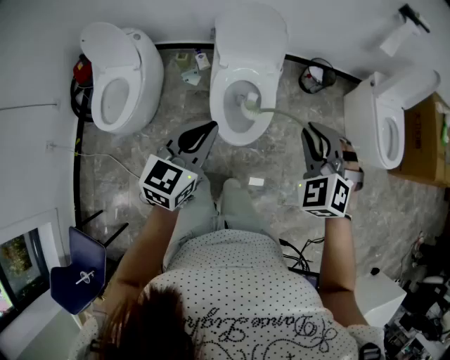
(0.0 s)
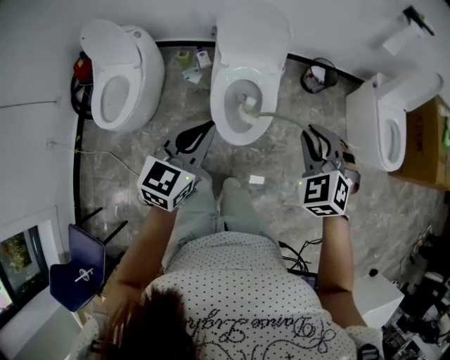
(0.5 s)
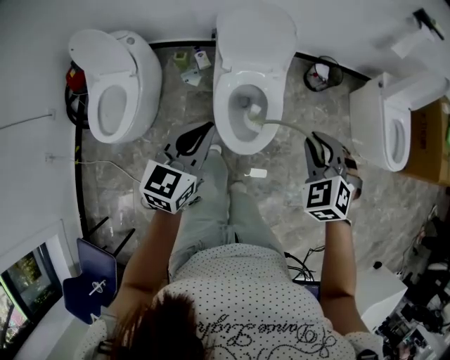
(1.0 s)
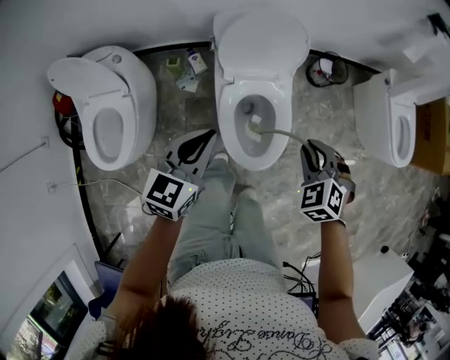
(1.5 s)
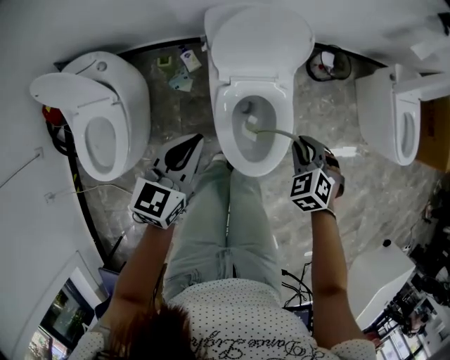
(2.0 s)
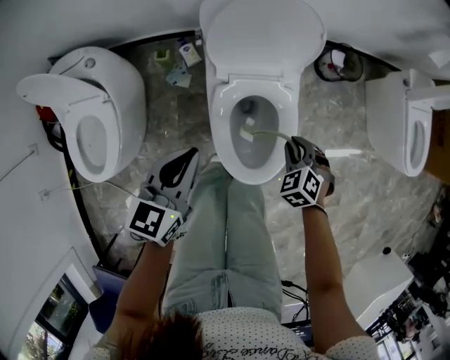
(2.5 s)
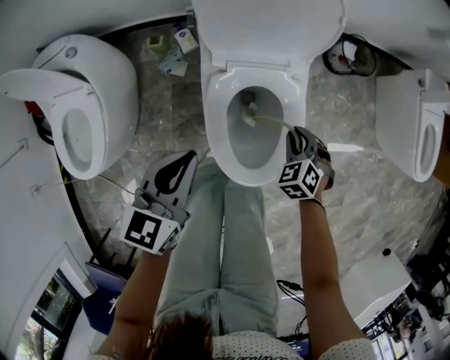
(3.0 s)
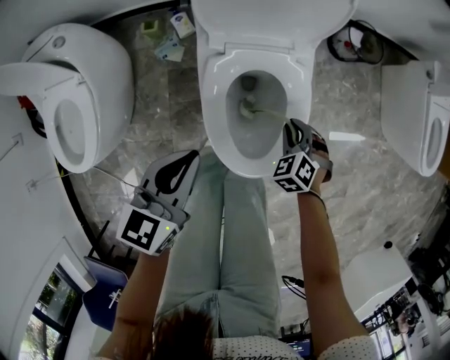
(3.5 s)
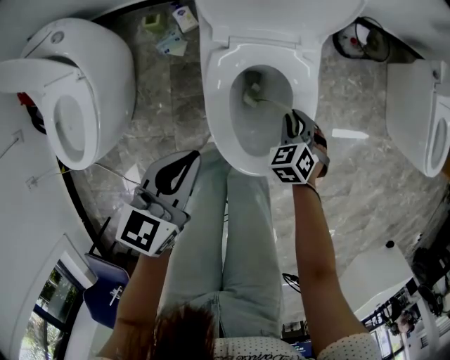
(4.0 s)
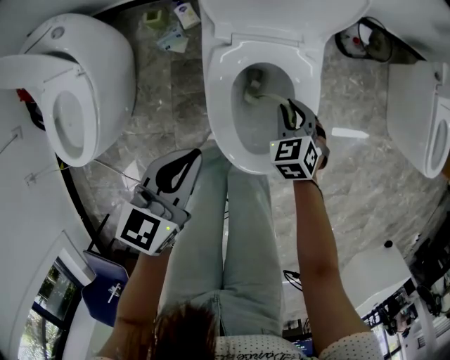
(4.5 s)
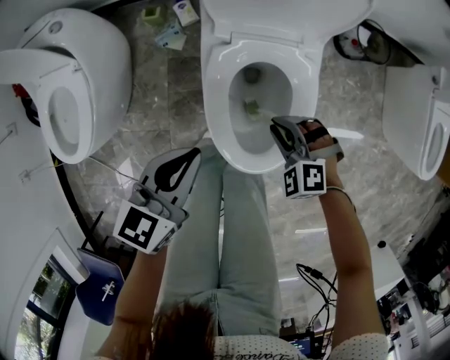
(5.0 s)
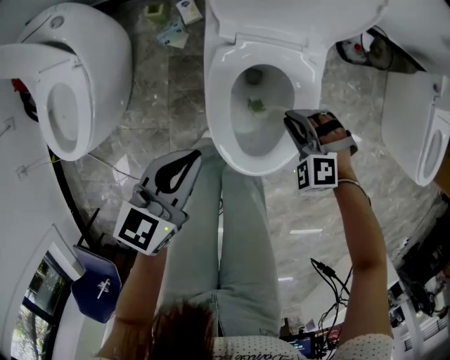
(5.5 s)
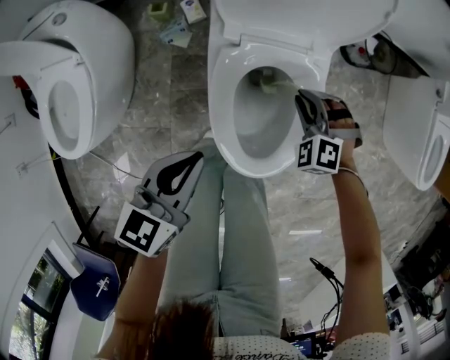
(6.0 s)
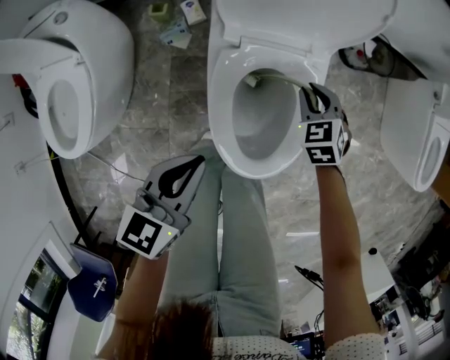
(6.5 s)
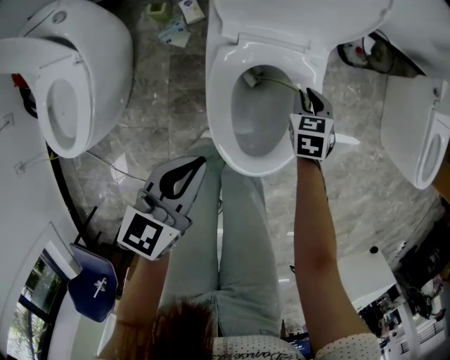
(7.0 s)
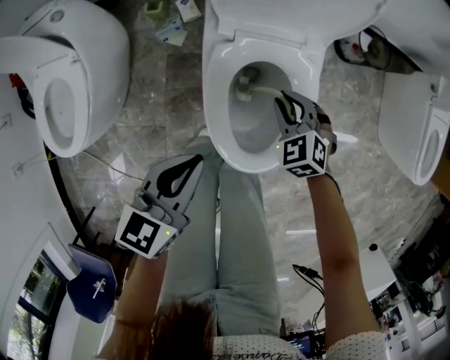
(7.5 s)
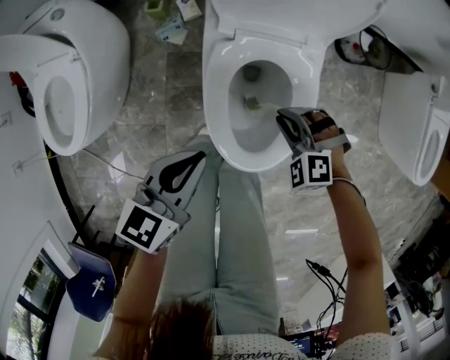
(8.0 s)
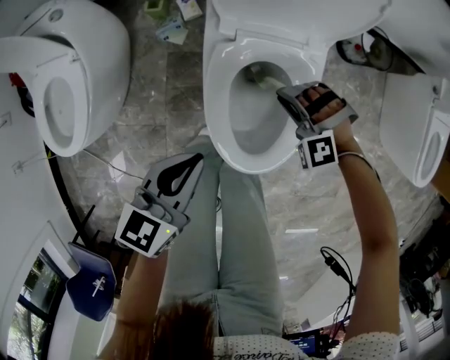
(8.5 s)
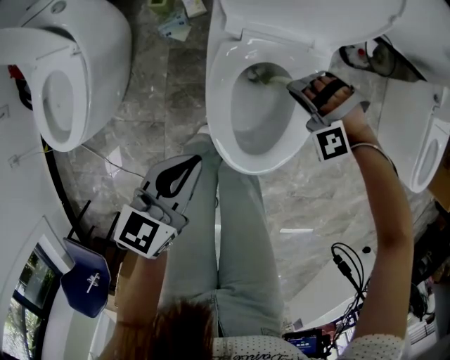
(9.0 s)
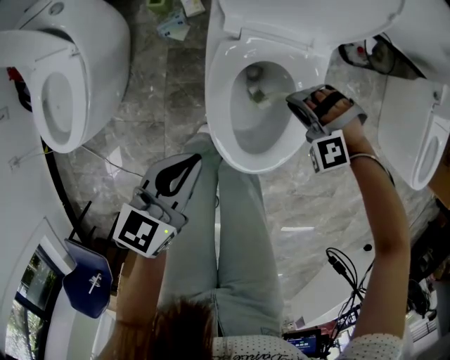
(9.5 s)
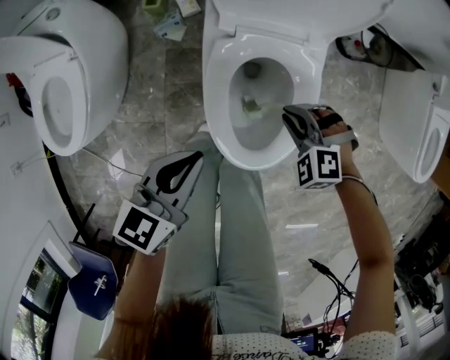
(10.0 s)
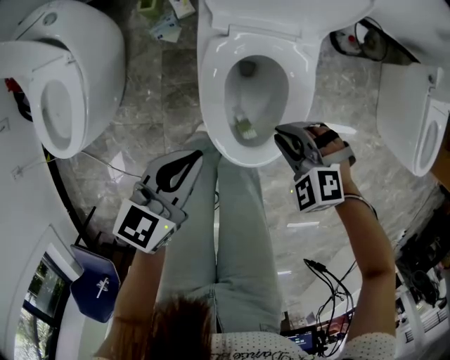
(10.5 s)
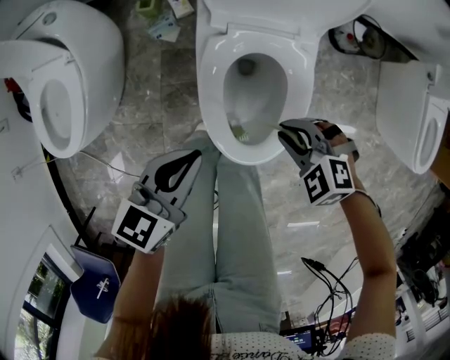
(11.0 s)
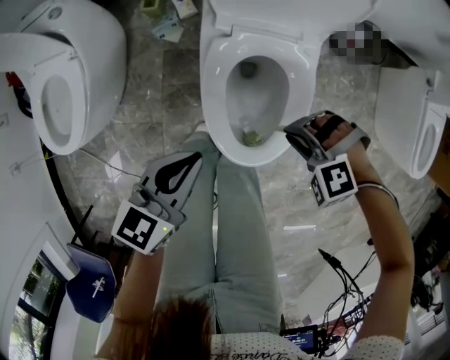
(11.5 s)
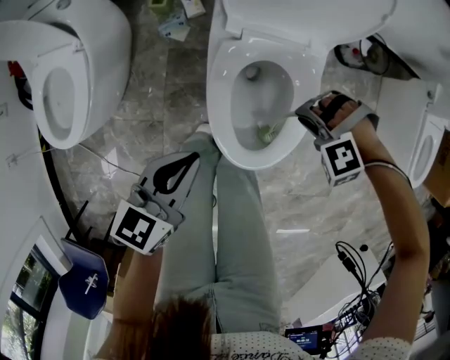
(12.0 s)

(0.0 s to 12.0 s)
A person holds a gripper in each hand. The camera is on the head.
0.0 s - 2.0 s: The left gripper goes about 30 cm forward, to the left and downward, while the right gripper travels downward, forward and to the left by some 30 cm, and swivels some 30 degrees.
2.0 s - 4.0 s: The left gripper shifts some 15 cm downward. The right gripper is displaced downward by some 25 cm.
4.0 s - 6.0 s: The right gripper moves forward, about 5 cm, and rolls counterclockwise, seen from behind, by roughly 40 degrees.
6.0 s - 8.0 s: The right gripper moves backward, roughly 10 cm.
10.0 s - 12.0 s: The right gripper changes its angle by roughly 40 degrees.

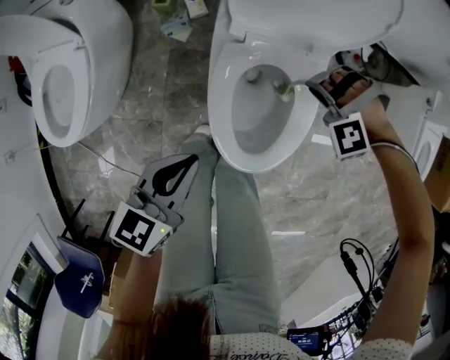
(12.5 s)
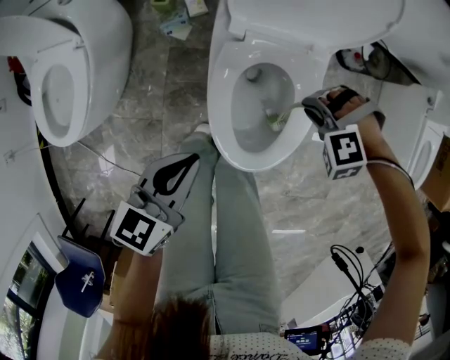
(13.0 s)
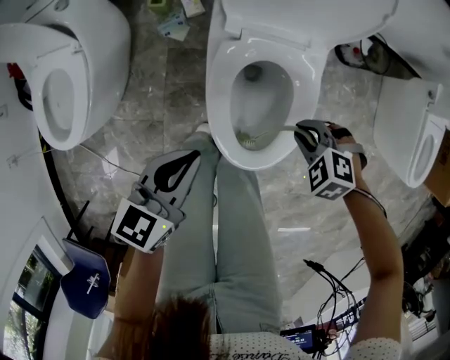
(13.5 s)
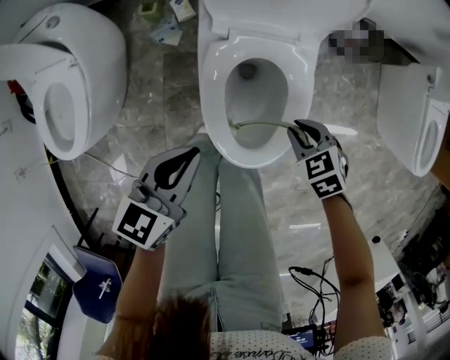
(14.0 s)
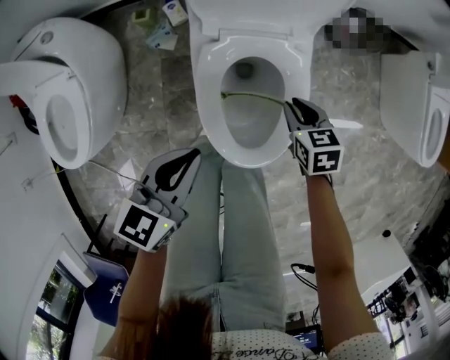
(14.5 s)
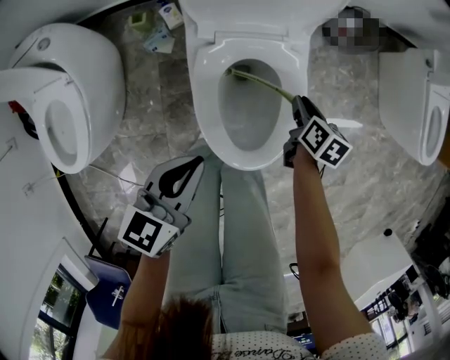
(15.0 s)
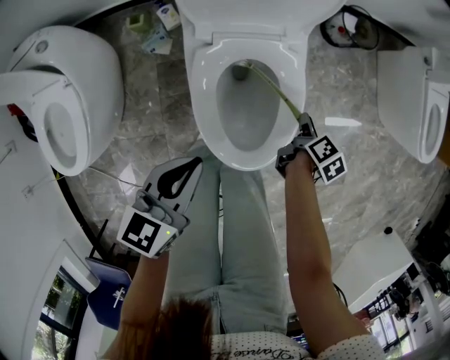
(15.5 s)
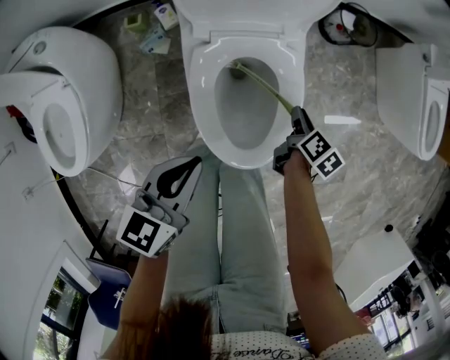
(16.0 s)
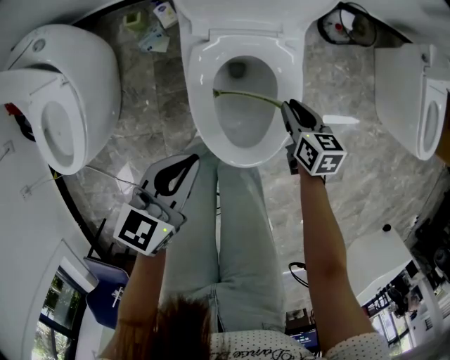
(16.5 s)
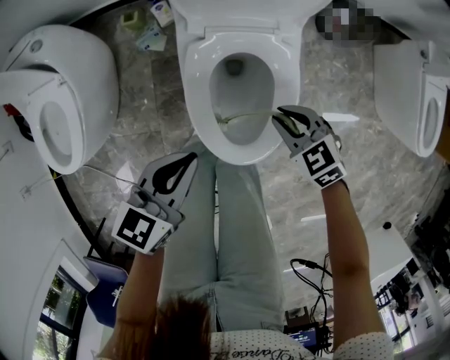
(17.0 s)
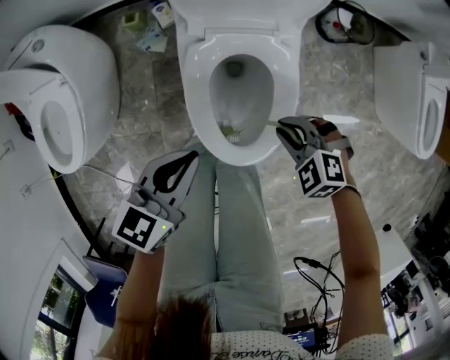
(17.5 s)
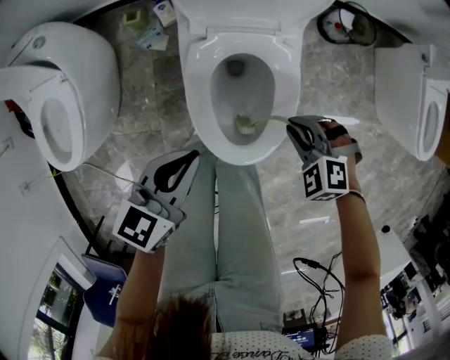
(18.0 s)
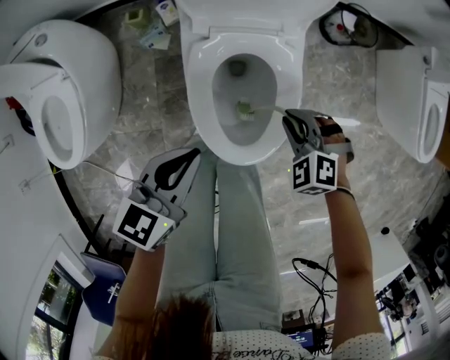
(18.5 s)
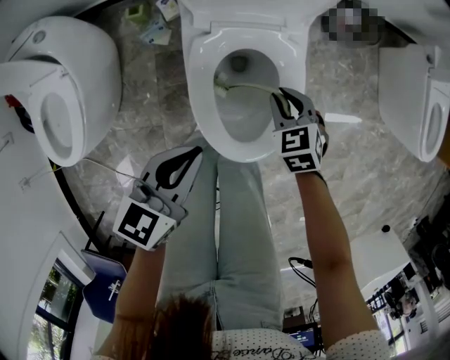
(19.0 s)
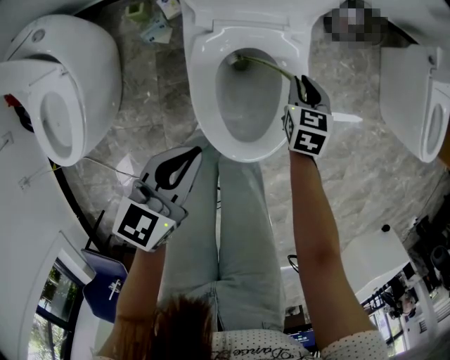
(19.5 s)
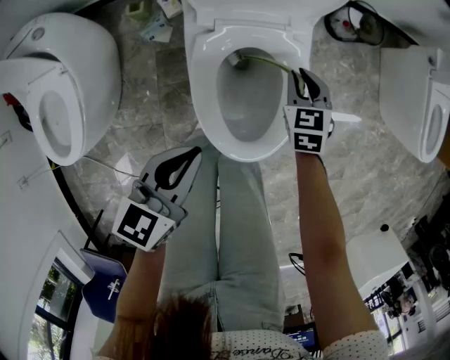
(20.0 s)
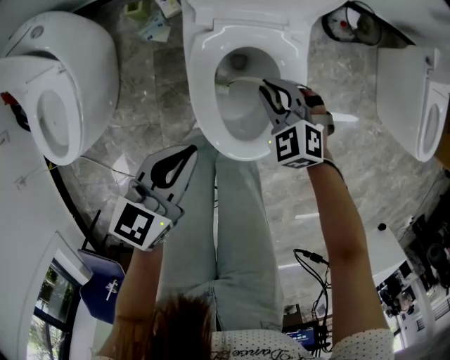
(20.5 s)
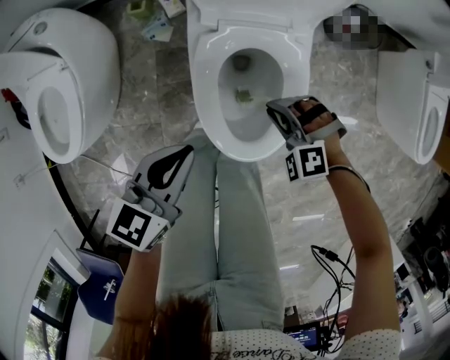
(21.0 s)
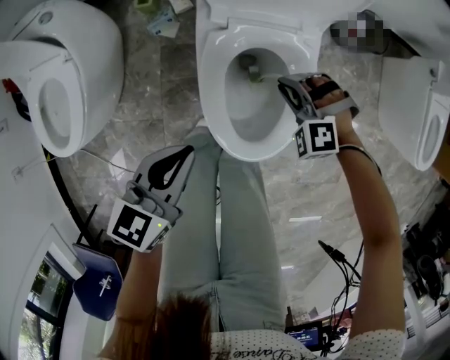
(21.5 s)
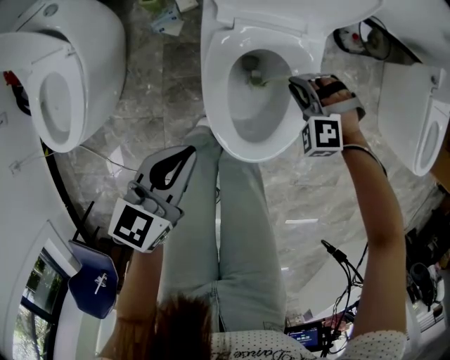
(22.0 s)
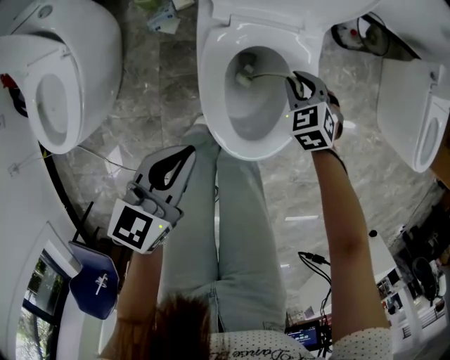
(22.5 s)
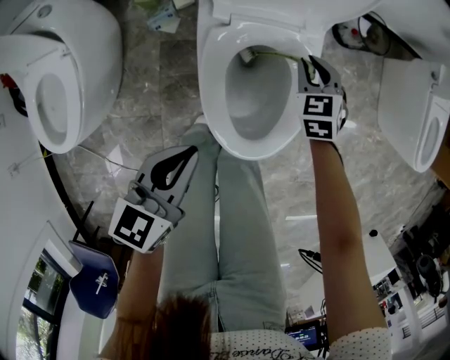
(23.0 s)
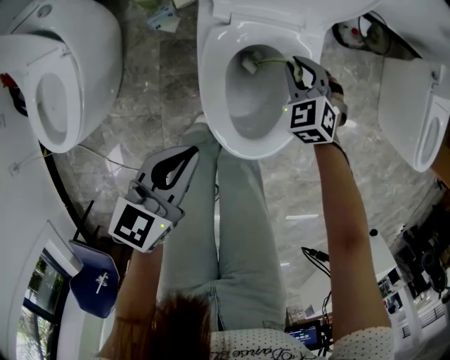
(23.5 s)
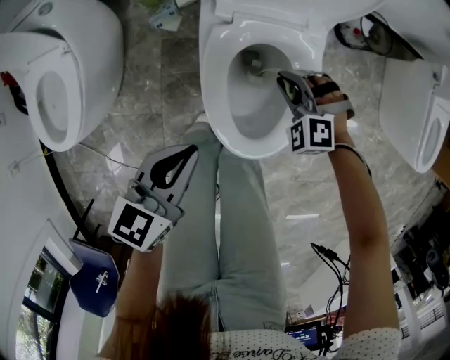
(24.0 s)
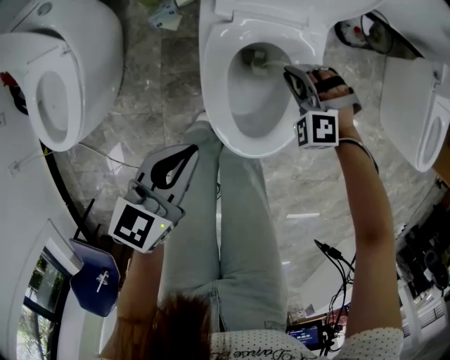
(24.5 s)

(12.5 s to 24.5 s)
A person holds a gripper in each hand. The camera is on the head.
12.5 s - 14.5 s: The right gripper twists about 120 degrees clockwise, seen from behind.
14.5 s - 16.5 s: The right gripper travels to the right and back again, about 10 cm each way.
16.5 s - 18.5 s: The right gripper twists approximately 80 degrees counterclockwise, seen from behind.
18.5 s - 20.5 s: The right gripper shifts approximately 10 cm to the left.
20.5 s - 22.5 s: The right gripper heads downward, covering about 5 cm.
22.5 s - 24.5 s: The right gripper moves some 5 cm forward and comes back, and rotates around the line of its fingers by some 50 degrees, counterclockwise from behind.

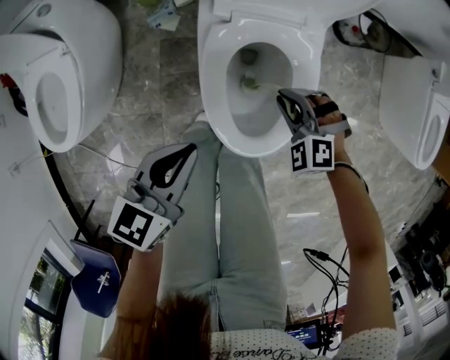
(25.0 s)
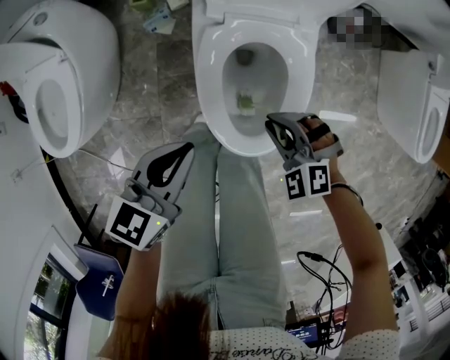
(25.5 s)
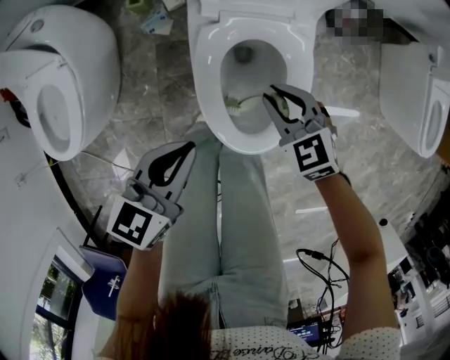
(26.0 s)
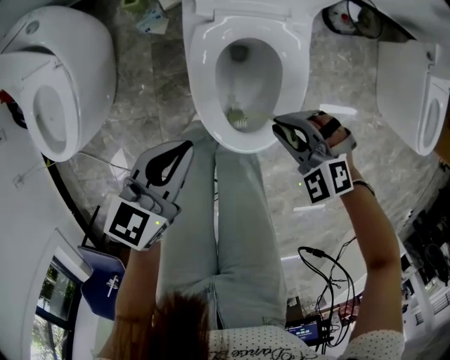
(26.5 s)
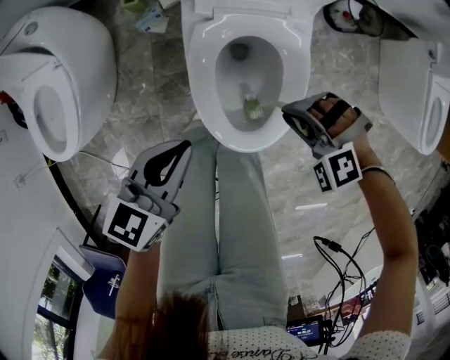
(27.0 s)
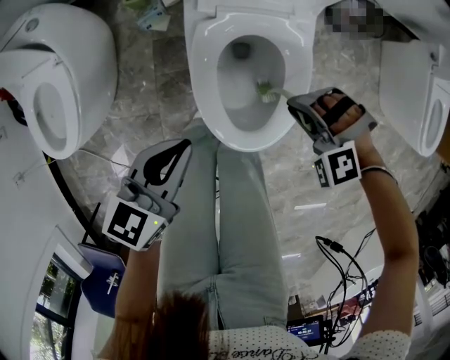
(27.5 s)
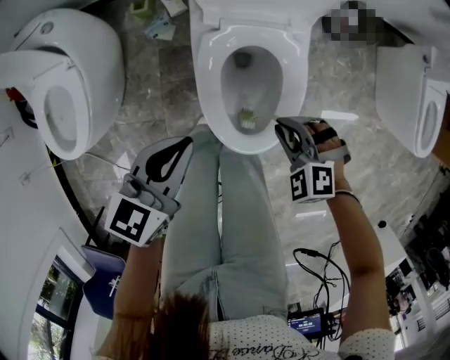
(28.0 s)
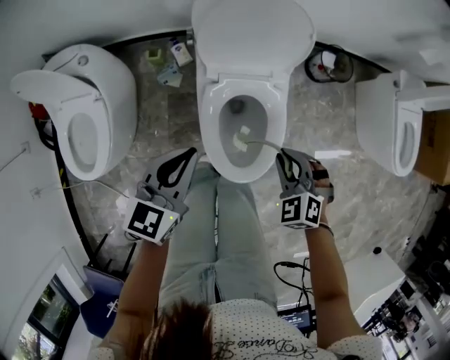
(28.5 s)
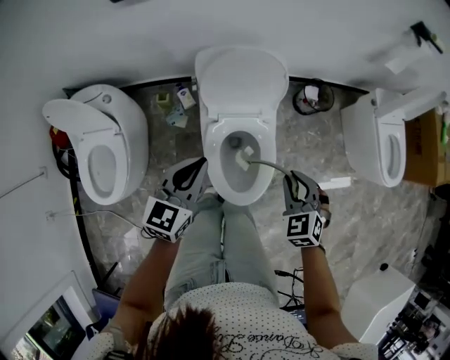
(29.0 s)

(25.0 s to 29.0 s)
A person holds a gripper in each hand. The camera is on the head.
25.0 s - 27.0 s: The right gripper goes forward and backward, some 10 cm each way, reversing 2 times, and turns by some 20 degrees.
27.0 s - 29.0 s: The grippers both shift upward by approximately 25 cm. The right gripper rotates around the line of its fingers by some 60 degrees, clockwise from behind.
